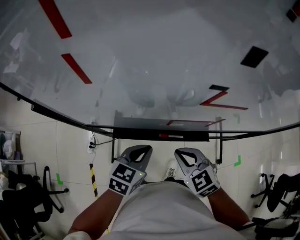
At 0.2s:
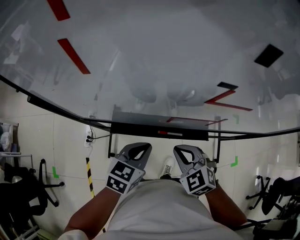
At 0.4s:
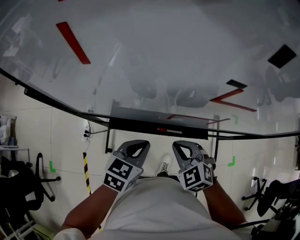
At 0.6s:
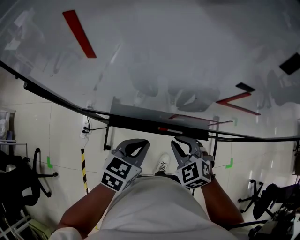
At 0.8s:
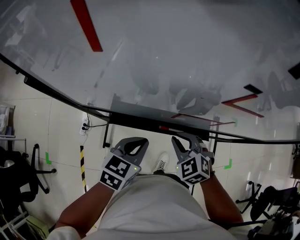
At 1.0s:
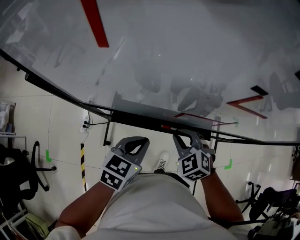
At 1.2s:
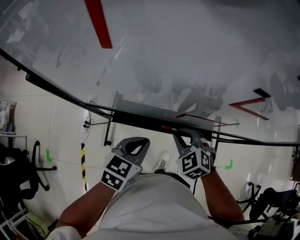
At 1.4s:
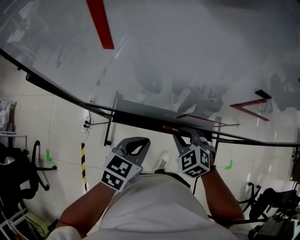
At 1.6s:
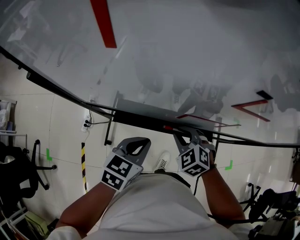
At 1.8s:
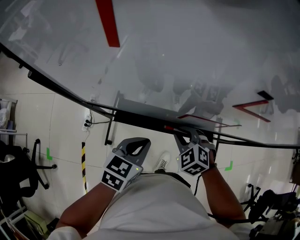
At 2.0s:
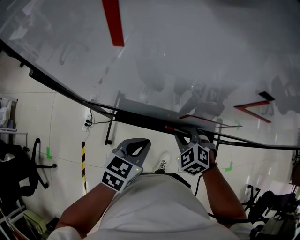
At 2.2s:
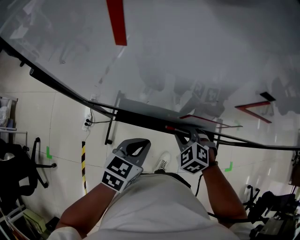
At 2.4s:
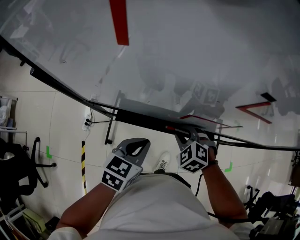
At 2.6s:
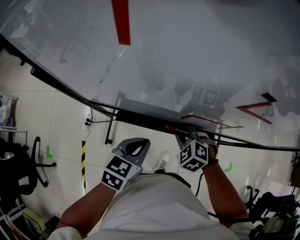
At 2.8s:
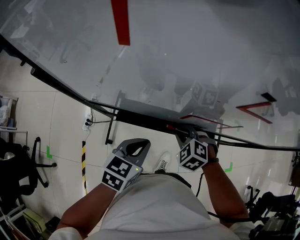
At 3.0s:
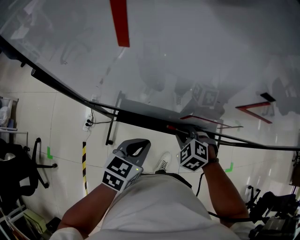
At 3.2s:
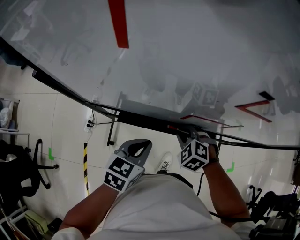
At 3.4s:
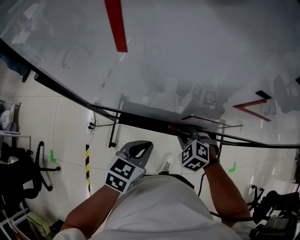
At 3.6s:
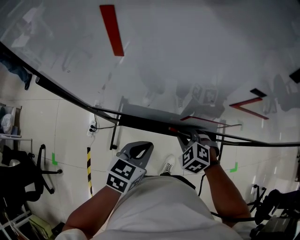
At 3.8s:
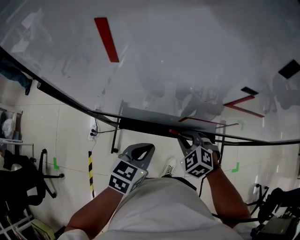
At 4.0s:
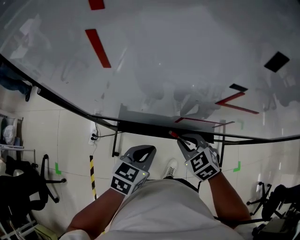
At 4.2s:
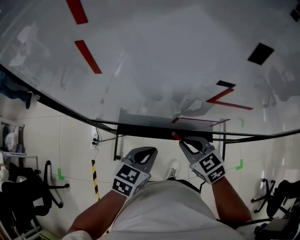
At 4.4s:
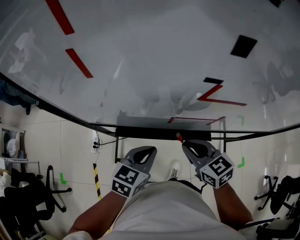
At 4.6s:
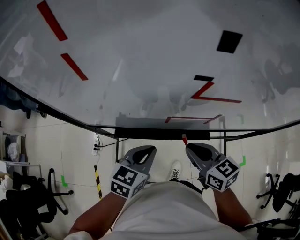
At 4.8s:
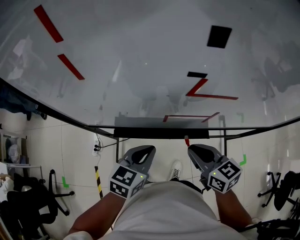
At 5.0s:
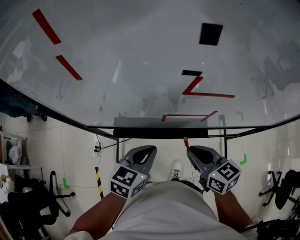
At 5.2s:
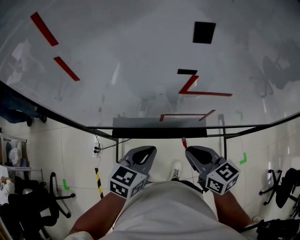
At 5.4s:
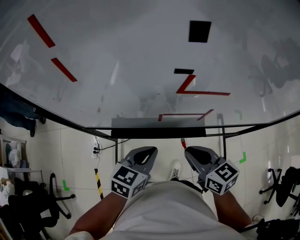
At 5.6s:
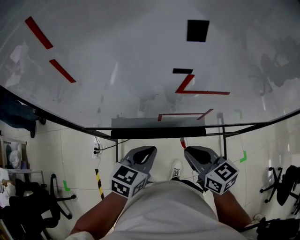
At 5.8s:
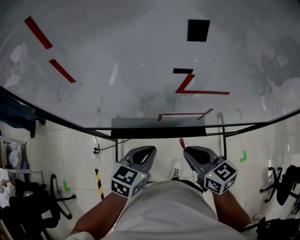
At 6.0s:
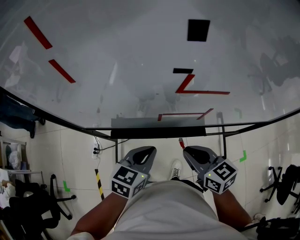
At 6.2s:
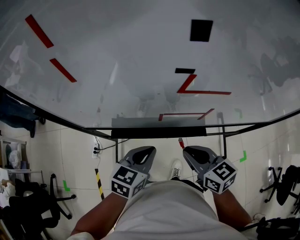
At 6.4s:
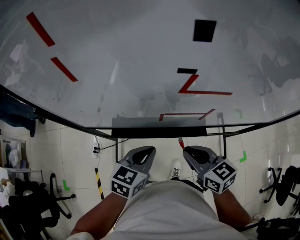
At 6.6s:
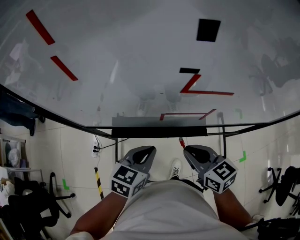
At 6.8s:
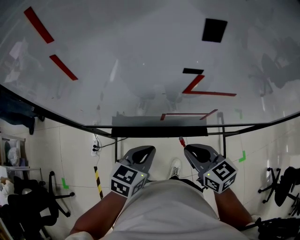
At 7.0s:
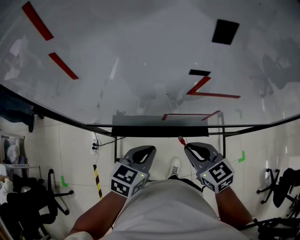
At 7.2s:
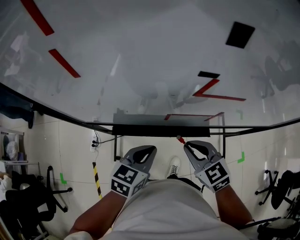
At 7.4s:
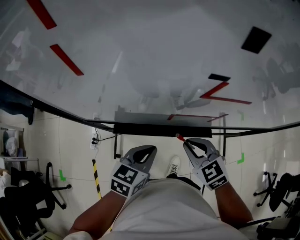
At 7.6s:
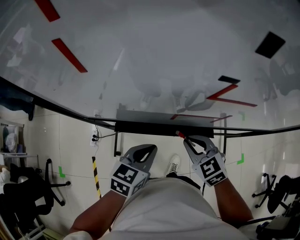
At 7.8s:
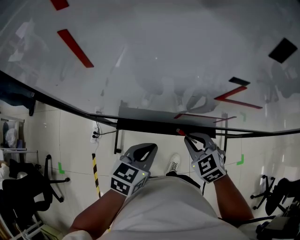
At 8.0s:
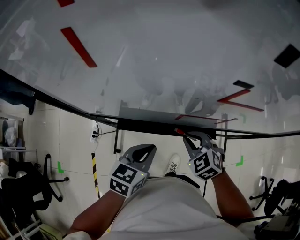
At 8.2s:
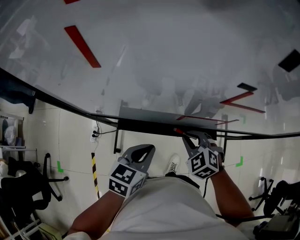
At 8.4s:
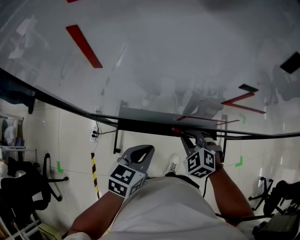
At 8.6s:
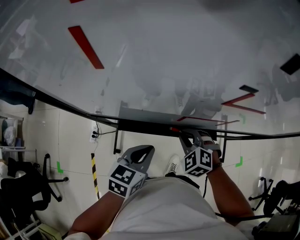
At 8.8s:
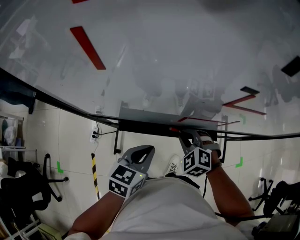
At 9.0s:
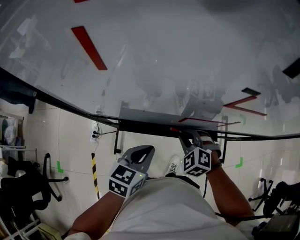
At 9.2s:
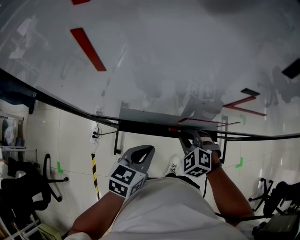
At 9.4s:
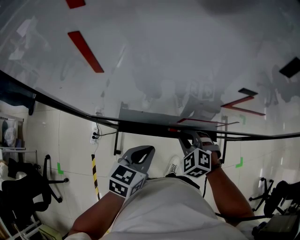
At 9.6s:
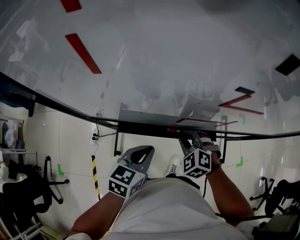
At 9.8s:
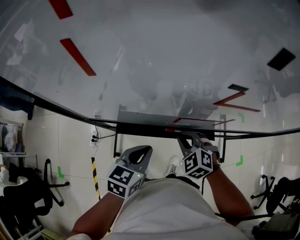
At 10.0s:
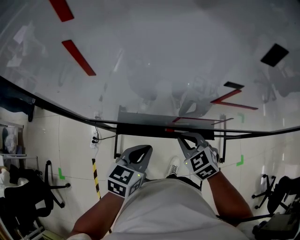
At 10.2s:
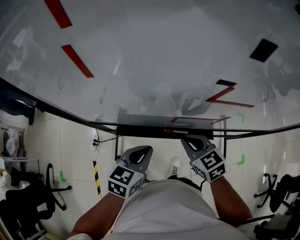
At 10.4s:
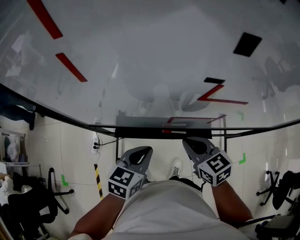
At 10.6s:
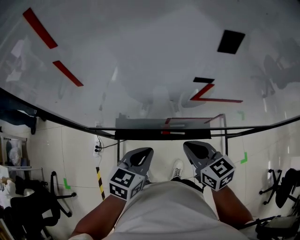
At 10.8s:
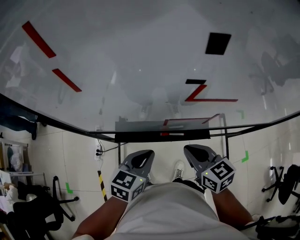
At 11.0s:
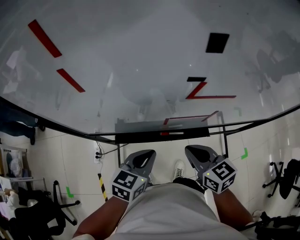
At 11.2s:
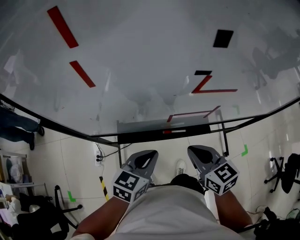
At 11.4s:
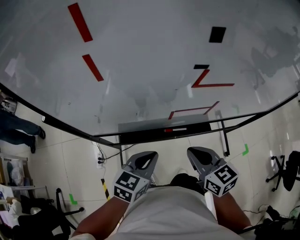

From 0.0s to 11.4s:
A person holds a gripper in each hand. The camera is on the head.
From 0.0s to 1.4s: The right gripper moves downward and forward, about 10 cm, and swivels some 20 degrees.
From 1.4s to 2.8s: The grippers make only small movements.
From 2.8s to 4.2s: The right gripper moves upward, approximately 10 cm, and swivels approximately 40 degrees.
From 4.2s to 5.6s: The right gripper goes about 5 cm upward, and changes its angle by approximately 30 degrees.
From 5.6s to 7.2s: The right gripper turns by roughly 30 degrees.
From 7.2s to 8.6s: The right gripper heads downward, covering roughly 10 cm, and rotates some 40 degrees.
From 8.6s to 10.0s: The right gripper rotates some 20 degrees.
From 10.0s to 11.4s: The right gripper shifts approximately 10 cm upward and backward, and swivels about 40 degrees.

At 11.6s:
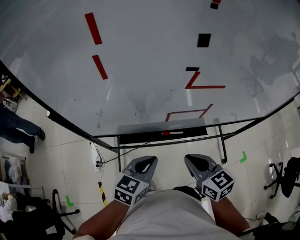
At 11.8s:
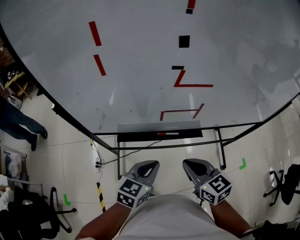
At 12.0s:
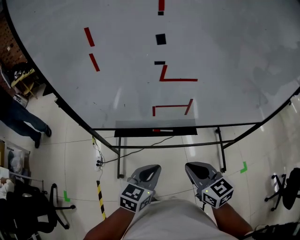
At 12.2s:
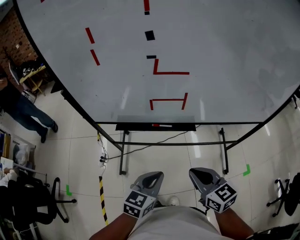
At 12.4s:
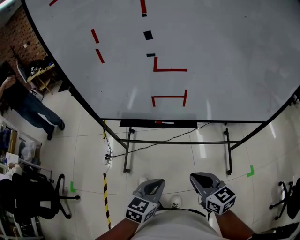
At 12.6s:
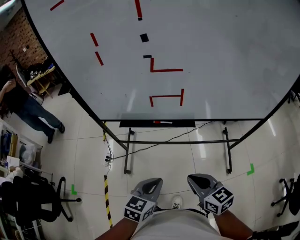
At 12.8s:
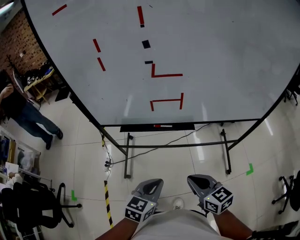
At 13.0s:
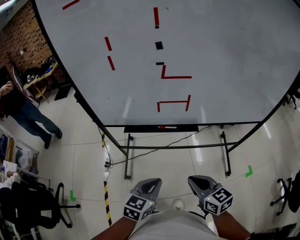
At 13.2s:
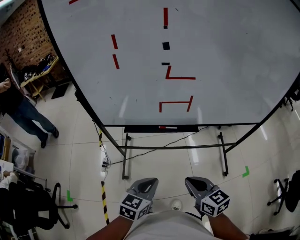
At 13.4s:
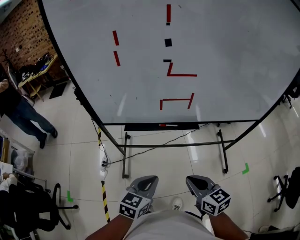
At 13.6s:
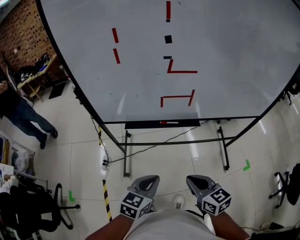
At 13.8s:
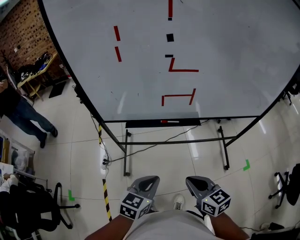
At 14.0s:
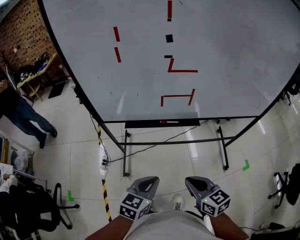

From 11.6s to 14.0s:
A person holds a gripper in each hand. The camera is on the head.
From 11.6s to 12.8s: The grippers both shift backward and to the right by some 20 cm.
From 12.8s to 14.0s: Both grippers travel together to the left, about 5 cm.

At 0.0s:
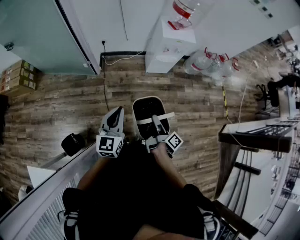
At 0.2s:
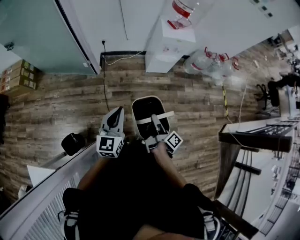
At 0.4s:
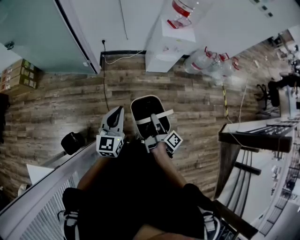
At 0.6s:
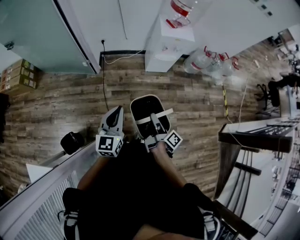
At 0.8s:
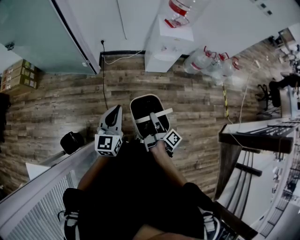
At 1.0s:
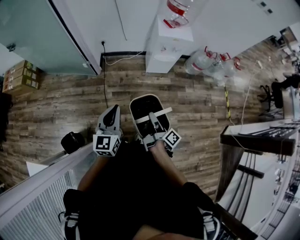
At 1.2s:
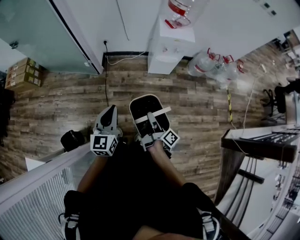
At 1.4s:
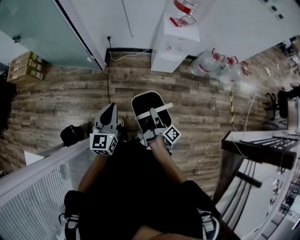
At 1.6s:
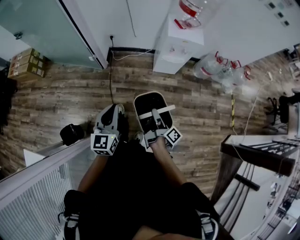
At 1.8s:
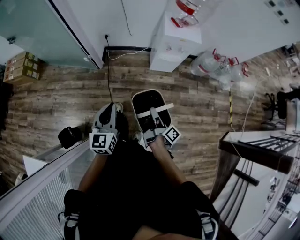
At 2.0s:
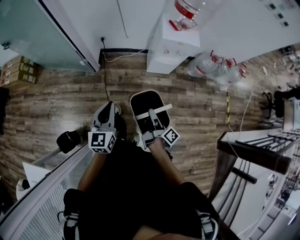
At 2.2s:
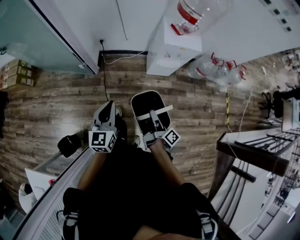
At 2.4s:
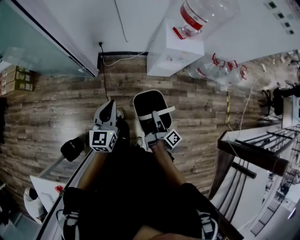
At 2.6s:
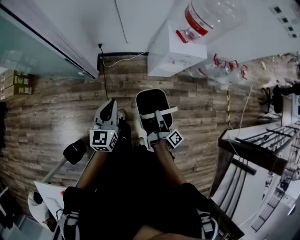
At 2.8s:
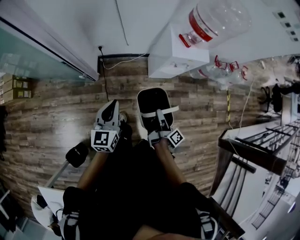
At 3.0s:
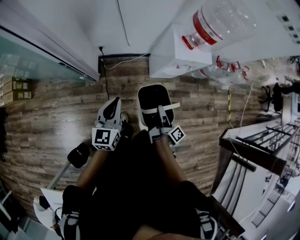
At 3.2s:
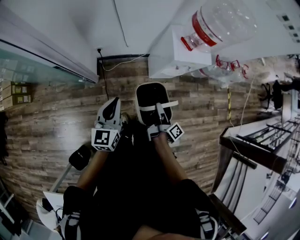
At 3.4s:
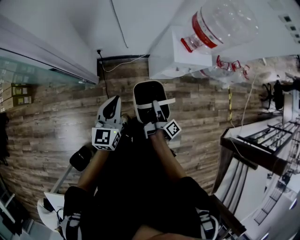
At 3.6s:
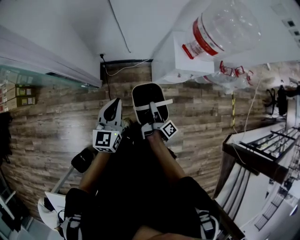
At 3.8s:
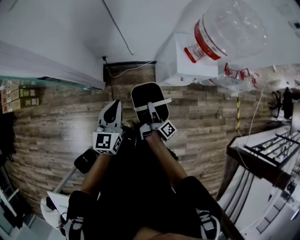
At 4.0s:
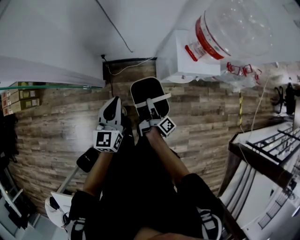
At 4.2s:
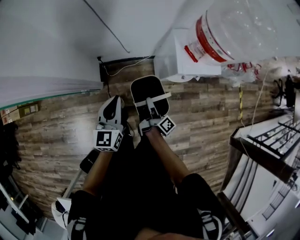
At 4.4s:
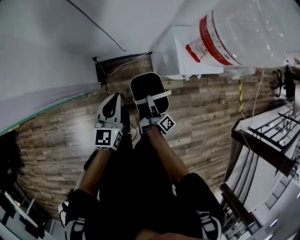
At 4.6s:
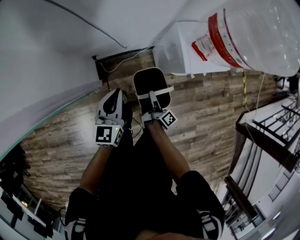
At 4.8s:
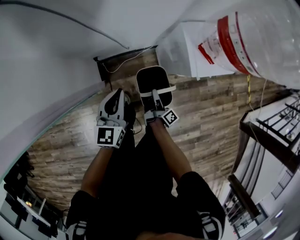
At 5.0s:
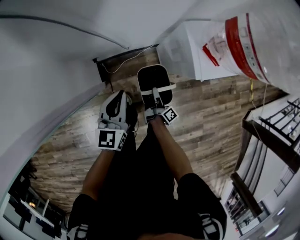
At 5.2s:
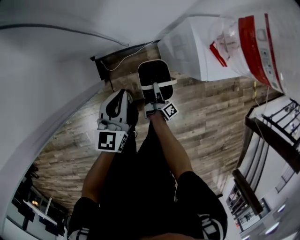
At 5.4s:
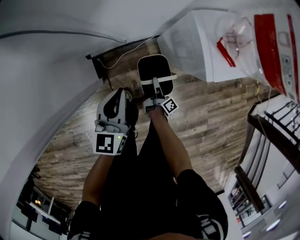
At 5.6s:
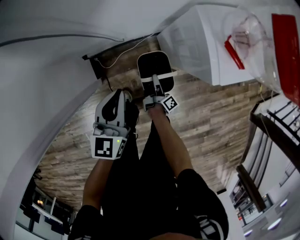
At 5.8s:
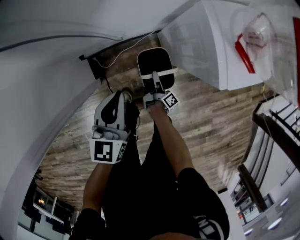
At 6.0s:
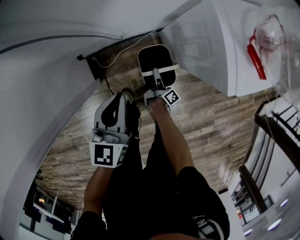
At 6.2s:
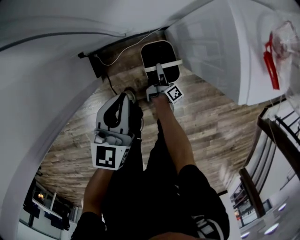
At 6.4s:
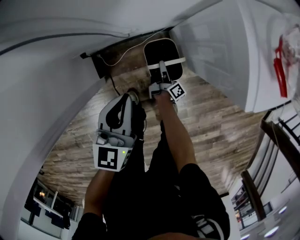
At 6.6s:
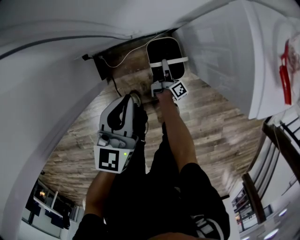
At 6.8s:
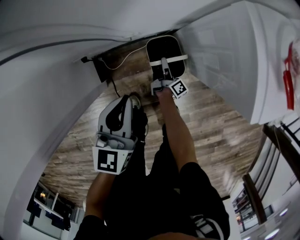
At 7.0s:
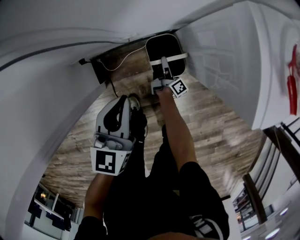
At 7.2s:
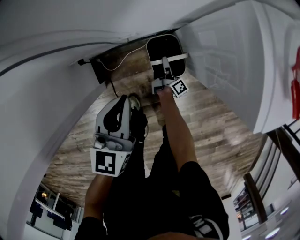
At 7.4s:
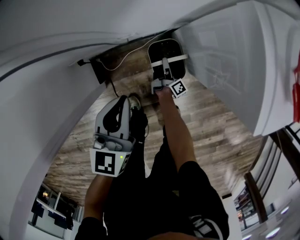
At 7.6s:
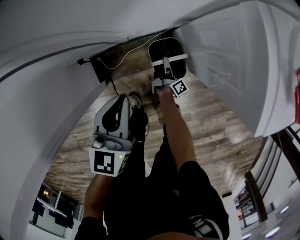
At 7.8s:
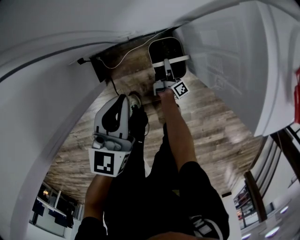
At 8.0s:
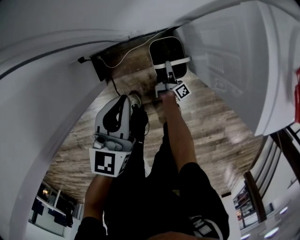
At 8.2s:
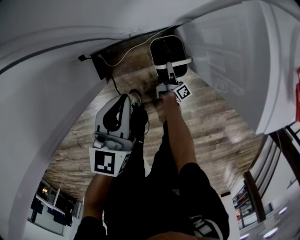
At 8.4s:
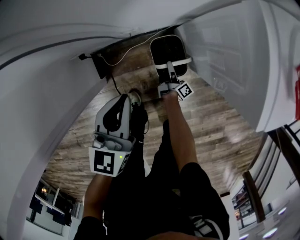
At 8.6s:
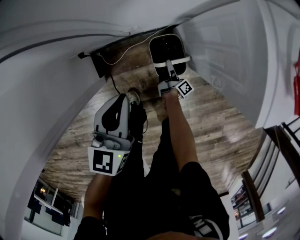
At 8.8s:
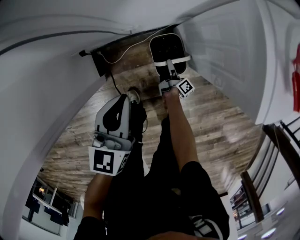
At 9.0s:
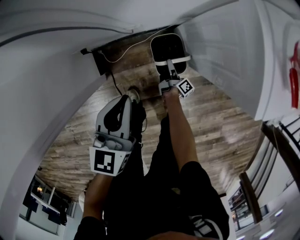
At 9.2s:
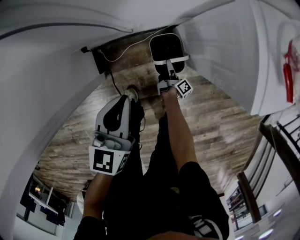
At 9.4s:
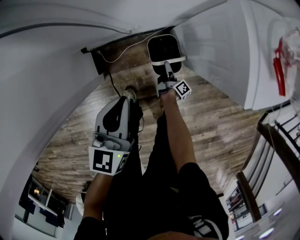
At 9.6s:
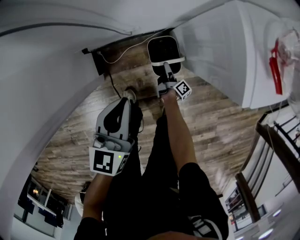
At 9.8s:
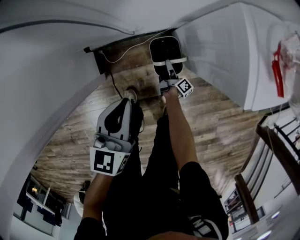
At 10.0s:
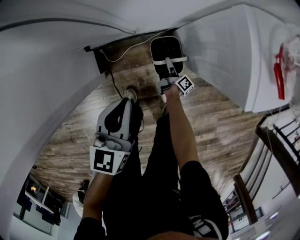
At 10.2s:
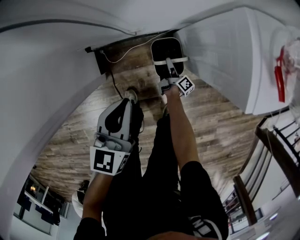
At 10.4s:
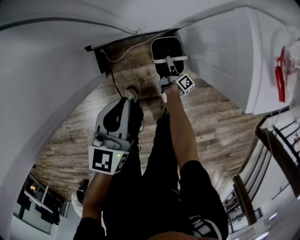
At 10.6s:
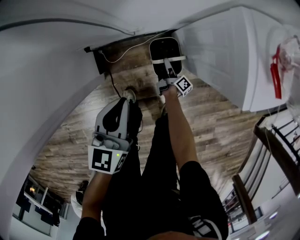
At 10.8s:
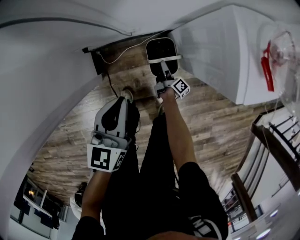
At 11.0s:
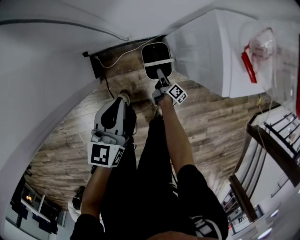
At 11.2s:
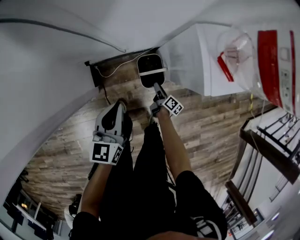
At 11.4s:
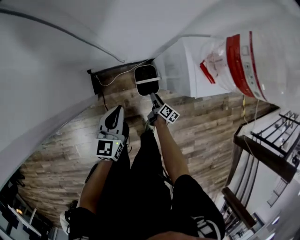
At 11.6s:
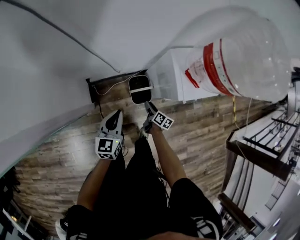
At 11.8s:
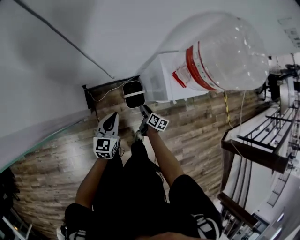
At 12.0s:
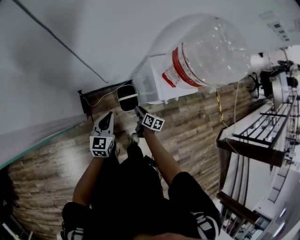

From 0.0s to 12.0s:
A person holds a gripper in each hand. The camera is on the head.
From 1.6s to 3.0s: The left gripper shifts by some 35 cm.
From 3.0s to 4.4s: The left gripper shifts by some 20 cm.
From 4.4s to 6.0s: The left gripper heads downward, covering some 20 cm.
From 6.0s to 7.6s: The left gripper moves downward, about 5 cm.
From 10.4s to 12.0s: The left gripper goes about 15 cm upward.
